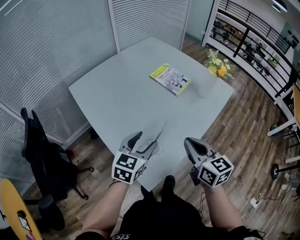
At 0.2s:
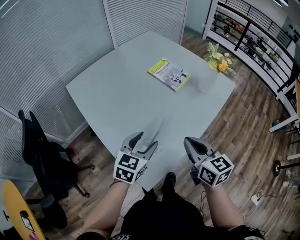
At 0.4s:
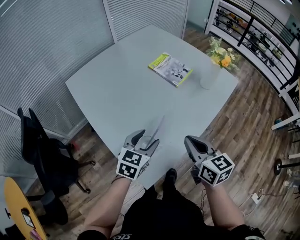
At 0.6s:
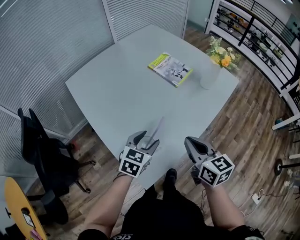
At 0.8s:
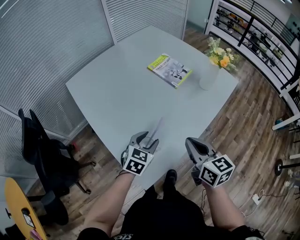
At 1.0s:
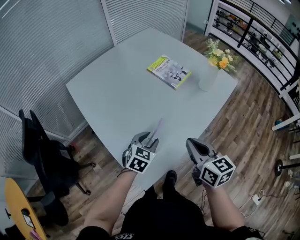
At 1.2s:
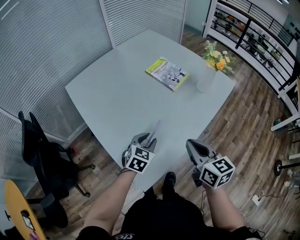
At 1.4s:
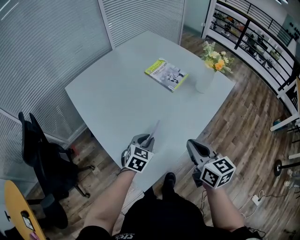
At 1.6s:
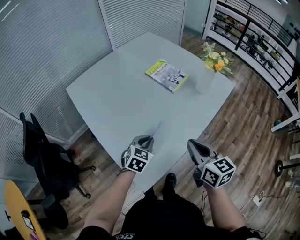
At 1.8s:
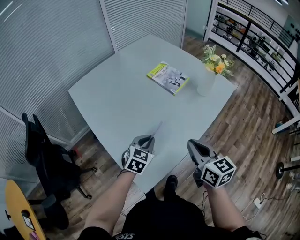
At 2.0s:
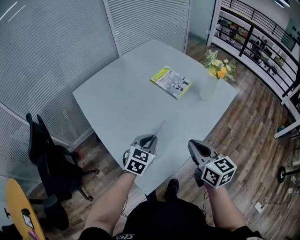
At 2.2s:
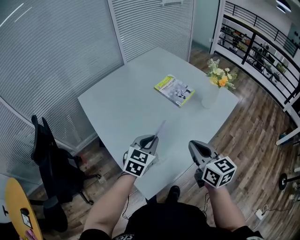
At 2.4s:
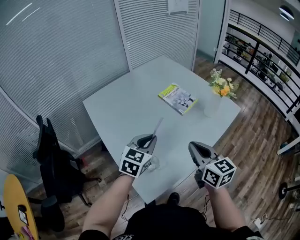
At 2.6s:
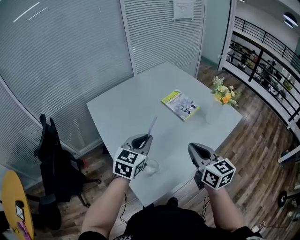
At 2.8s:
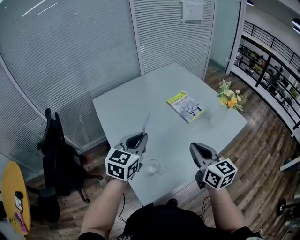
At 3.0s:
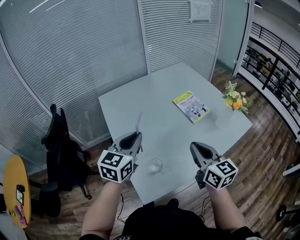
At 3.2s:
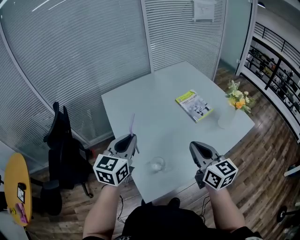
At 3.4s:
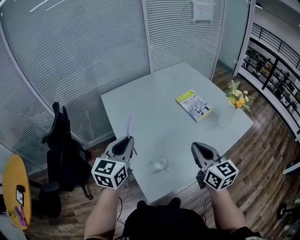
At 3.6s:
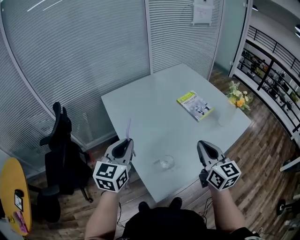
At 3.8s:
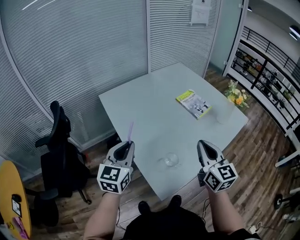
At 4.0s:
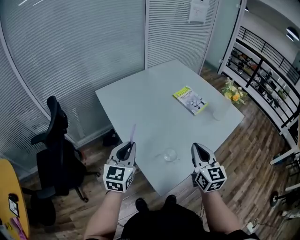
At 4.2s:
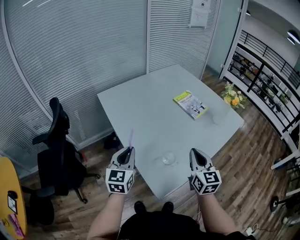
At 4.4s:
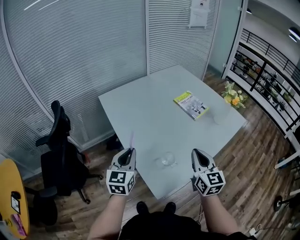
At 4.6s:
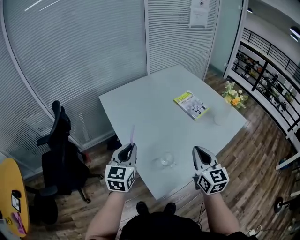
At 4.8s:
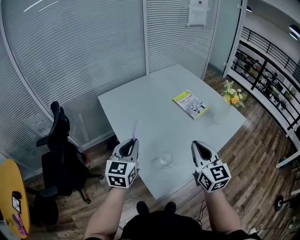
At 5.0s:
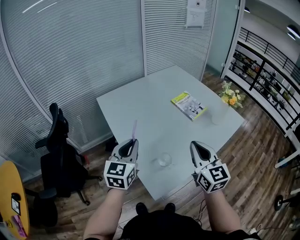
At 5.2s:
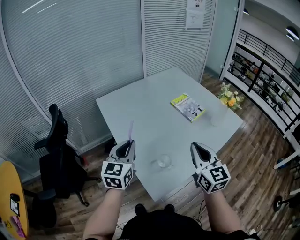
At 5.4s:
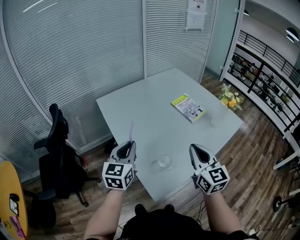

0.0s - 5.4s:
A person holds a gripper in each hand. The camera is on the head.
0.0s - 1.4s: The right gripper moves to the right, about 5 cm. The left gripper travels downward by roughly 15 cm, and closes.
1.4s - 2.8s: The left gripper shifts roughly 25 cm upward, and changes its angle by roughly 30 degrees. The right gripper is displaced upward and forward by approximately 10 cm.
2.8s - 4.0s: The left gripper travels to the left by roughly 20 cm, while the right gripper moves to the left and backward, roughly 10 cm.

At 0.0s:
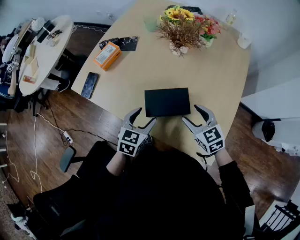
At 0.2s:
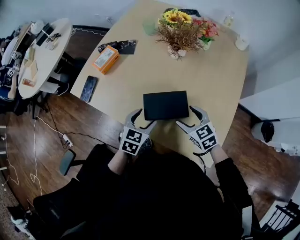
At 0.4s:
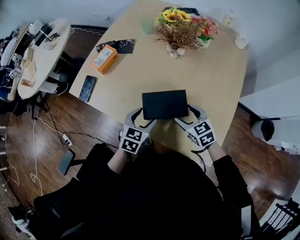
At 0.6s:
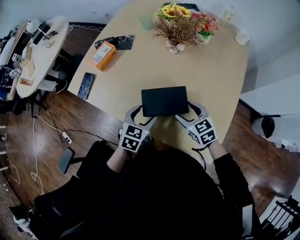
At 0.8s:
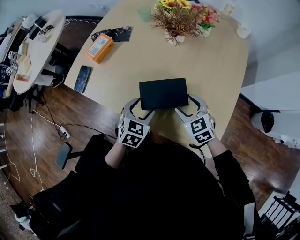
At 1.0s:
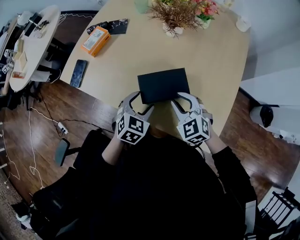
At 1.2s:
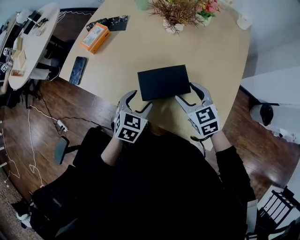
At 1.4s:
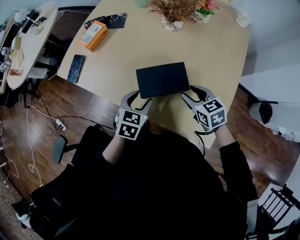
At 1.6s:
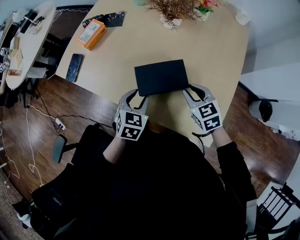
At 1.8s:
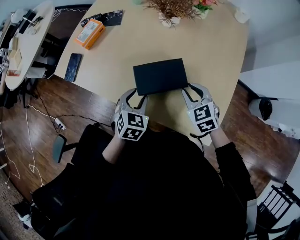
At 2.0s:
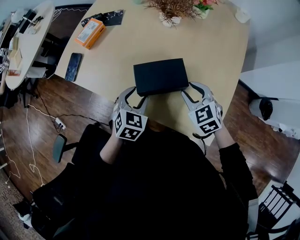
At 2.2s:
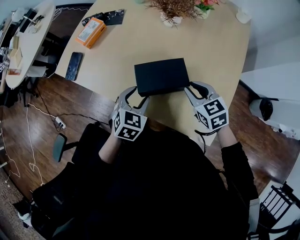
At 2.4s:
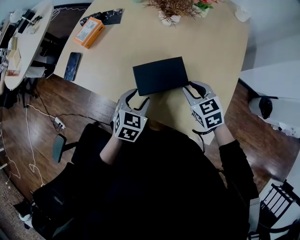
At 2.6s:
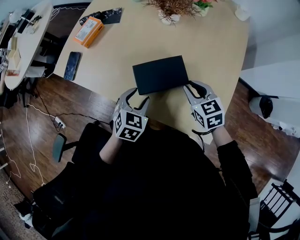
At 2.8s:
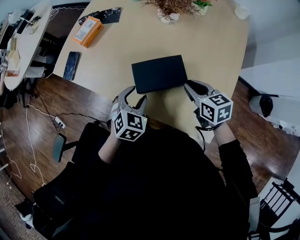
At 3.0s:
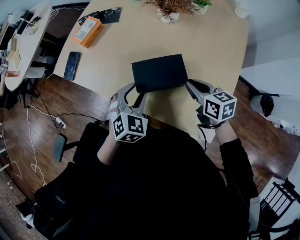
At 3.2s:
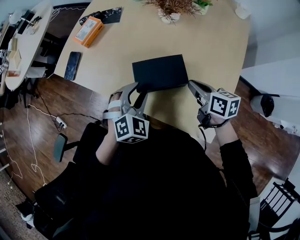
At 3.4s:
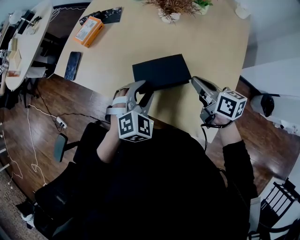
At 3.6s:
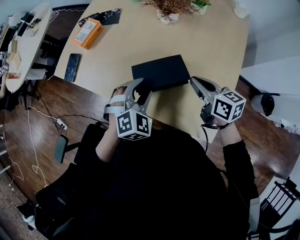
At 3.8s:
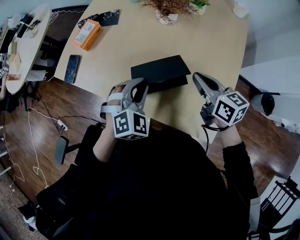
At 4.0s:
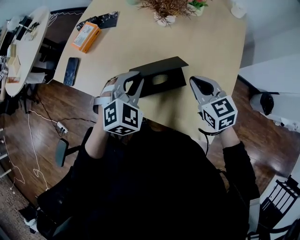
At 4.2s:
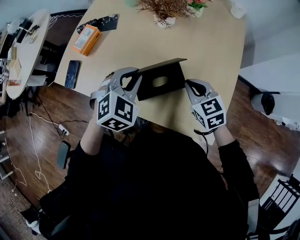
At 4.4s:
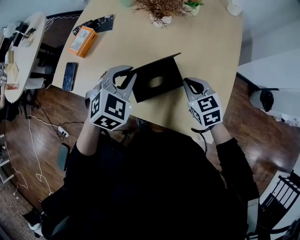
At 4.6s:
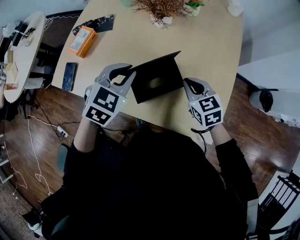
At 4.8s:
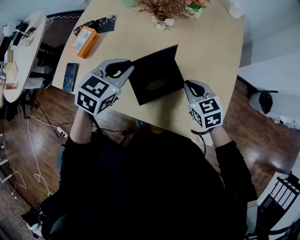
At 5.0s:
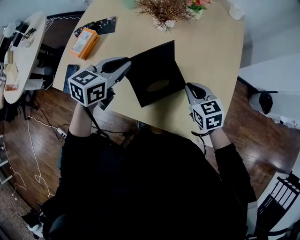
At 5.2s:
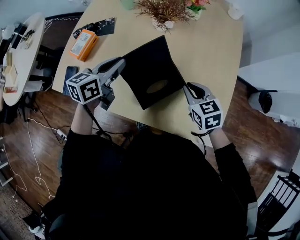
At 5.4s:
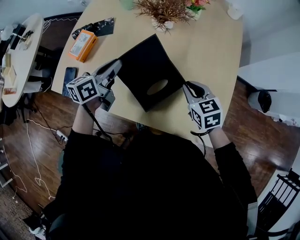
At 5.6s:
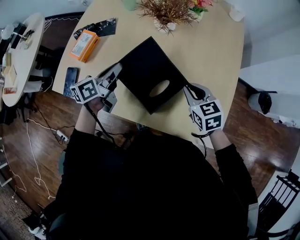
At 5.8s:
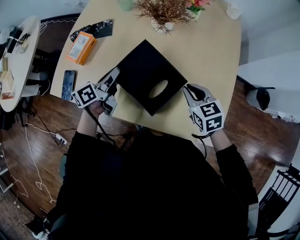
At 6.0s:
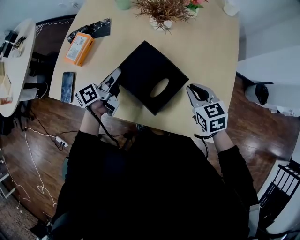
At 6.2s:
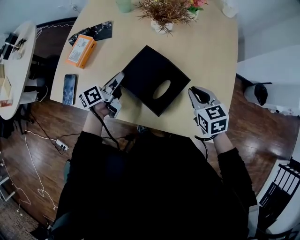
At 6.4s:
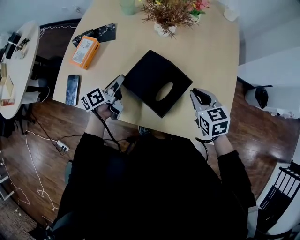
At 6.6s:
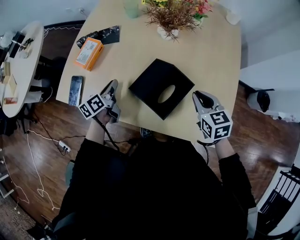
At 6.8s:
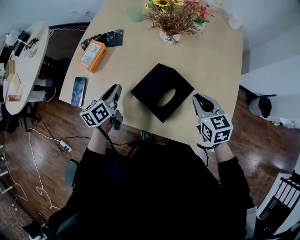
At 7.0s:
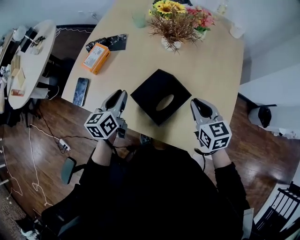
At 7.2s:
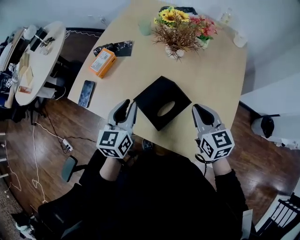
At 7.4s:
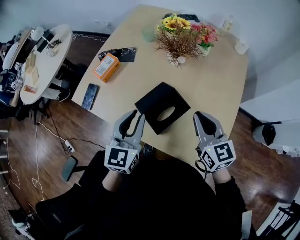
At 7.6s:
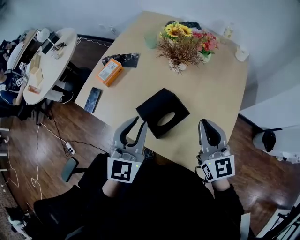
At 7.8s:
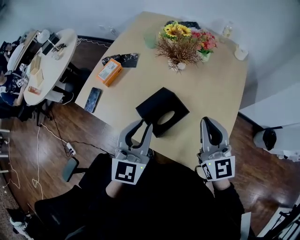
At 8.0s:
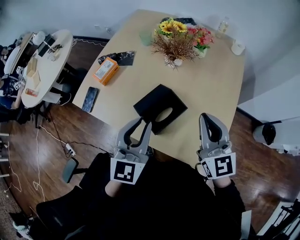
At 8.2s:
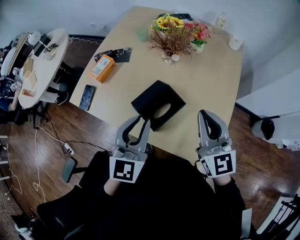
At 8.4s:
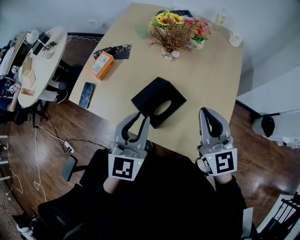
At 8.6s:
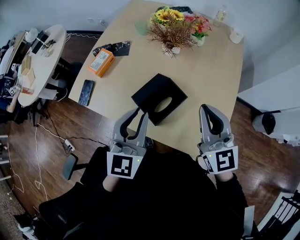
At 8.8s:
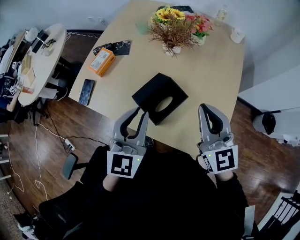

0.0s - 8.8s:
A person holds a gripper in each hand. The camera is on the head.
1.4s - 3.0s: The left gripper swivels approximately 30 degrees. The right gripper closes up.
3.0s - 4.4s: The right gripper swivels some 30 degrees; the left gripper travels upward and forward by about 10 cm, and closes its fingers.
4.4s - 5.8s: The left gripper moves to the left, downward and forward, about 15 cm, and twists about 80 degrees counterclockwise, seen from behind.
5.8s - 7.4s: The right gripper is displaced upward by roughly 15 cm, and turns by about 30 degrees. Meanwhile the left gripper travels upward, backward and to the right by about 20 cm, and rotates around the line of its fingers by approximately 50 degrees, clockwise from behind.
7.4s - 8.8s: The left gripper shifts by some 5 cm, while the right gripper travels upward by approximately 5 cm.

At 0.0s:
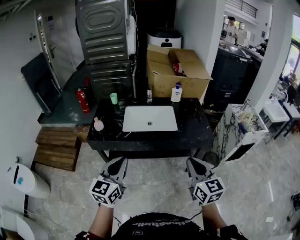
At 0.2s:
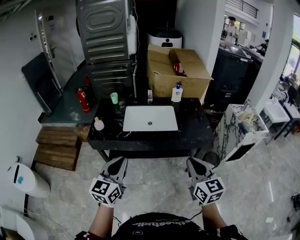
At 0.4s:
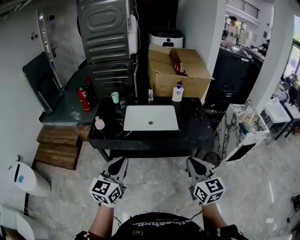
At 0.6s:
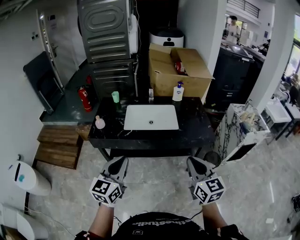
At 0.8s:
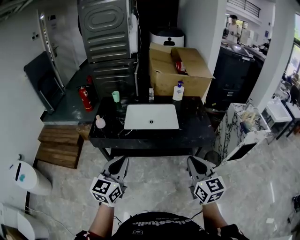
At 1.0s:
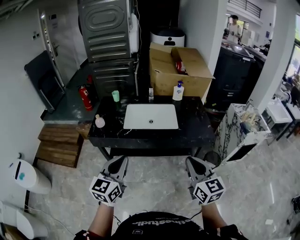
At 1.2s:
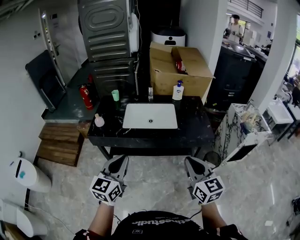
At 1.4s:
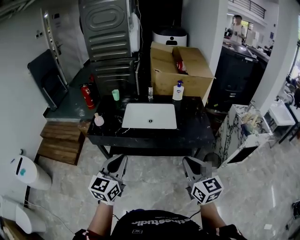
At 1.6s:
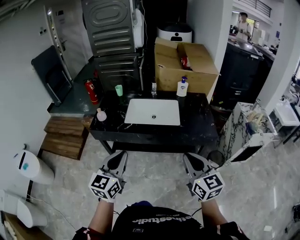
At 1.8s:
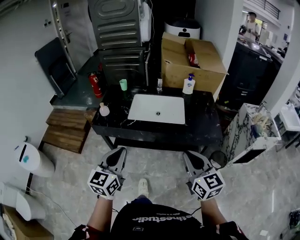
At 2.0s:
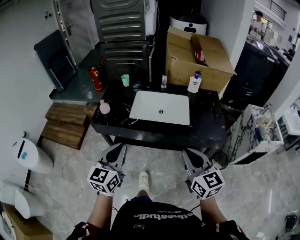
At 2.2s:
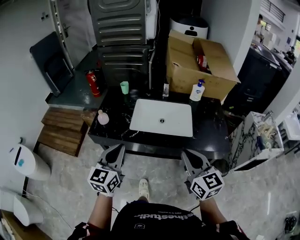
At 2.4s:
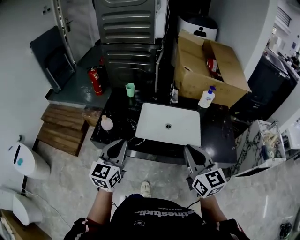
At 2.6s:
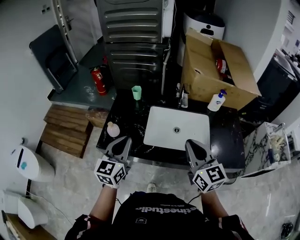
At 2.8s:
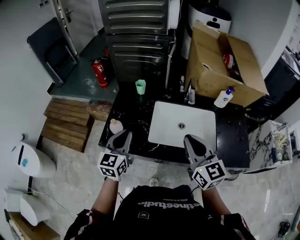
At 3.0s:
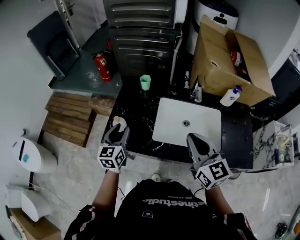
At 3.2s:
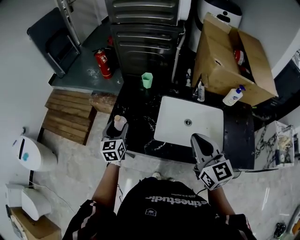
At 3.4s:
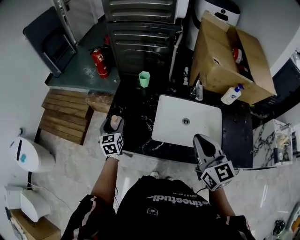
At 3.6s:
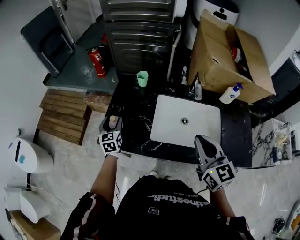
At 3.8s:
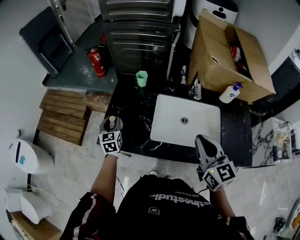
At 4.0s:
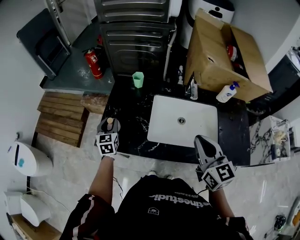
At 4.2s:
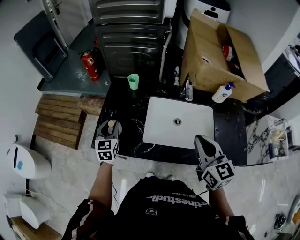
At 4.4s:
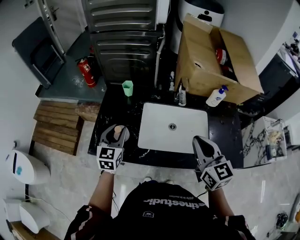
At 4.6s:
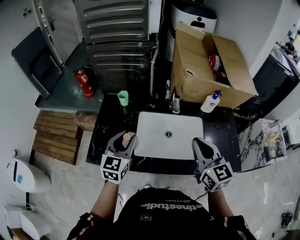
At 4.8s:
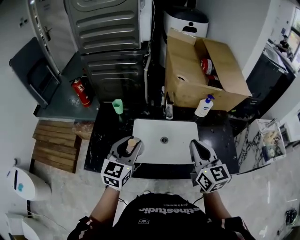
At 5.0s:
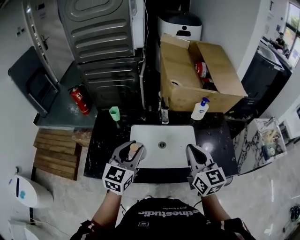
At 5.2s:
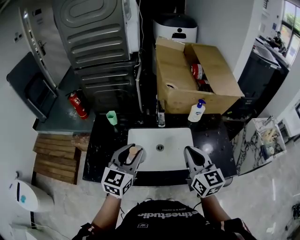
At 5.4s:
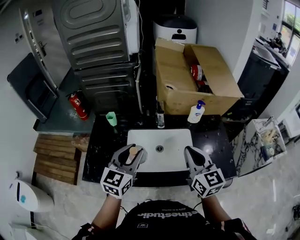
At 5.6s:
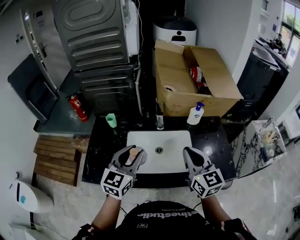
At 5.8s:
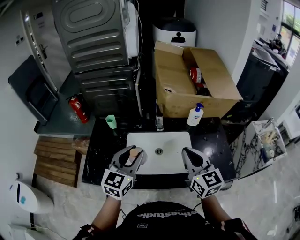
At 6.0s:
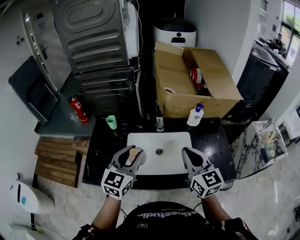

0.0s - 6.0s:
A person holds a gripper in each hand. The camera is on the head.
0.0s - 1.6s: The left gripper shifts by some 5 cm.
1.6s - 3.0s: Both grippers are carried forward and to the left, about 50 cm. The left gripper opens up.
3.0s - 4.4s: Both grippers move to the right, approximately 10 cm. The left gripper opens, then closes again.
4.4s - 6.0s: The left gripper travels to the right and upward by roughly 25 cm, and rotates some 20 degrees. Meanwhile the right gripper goes approximately 10 cm to the right.

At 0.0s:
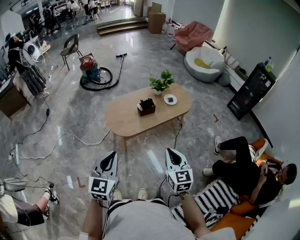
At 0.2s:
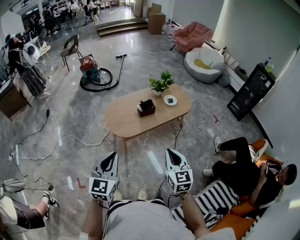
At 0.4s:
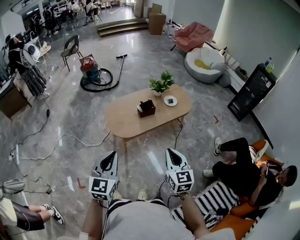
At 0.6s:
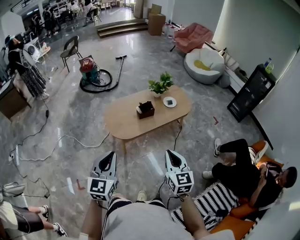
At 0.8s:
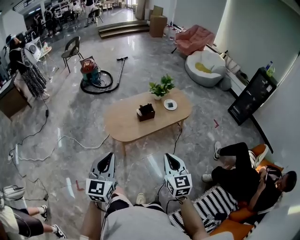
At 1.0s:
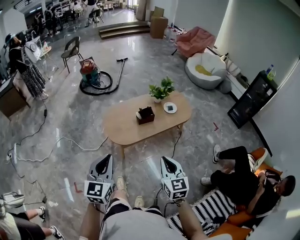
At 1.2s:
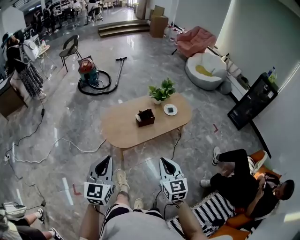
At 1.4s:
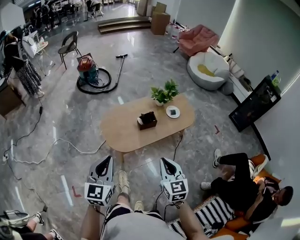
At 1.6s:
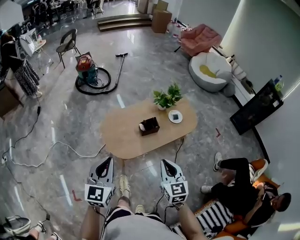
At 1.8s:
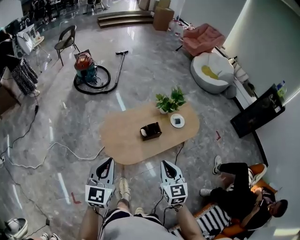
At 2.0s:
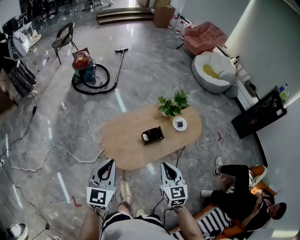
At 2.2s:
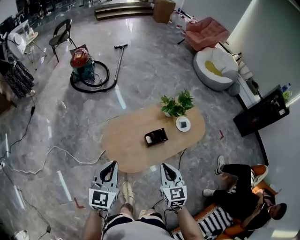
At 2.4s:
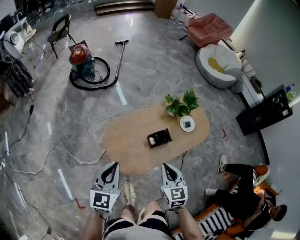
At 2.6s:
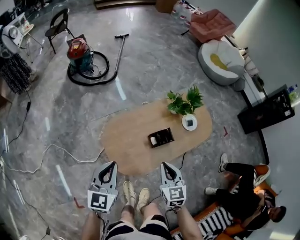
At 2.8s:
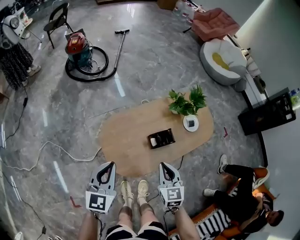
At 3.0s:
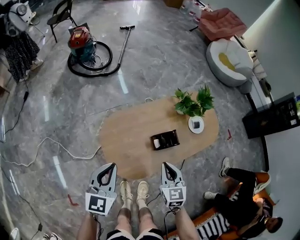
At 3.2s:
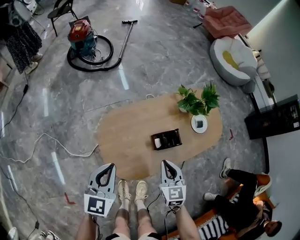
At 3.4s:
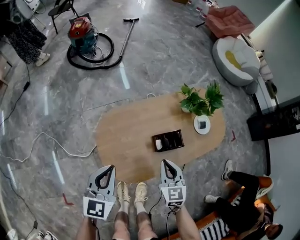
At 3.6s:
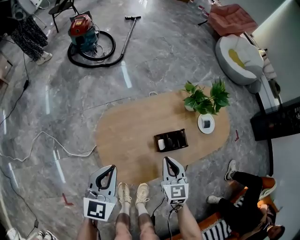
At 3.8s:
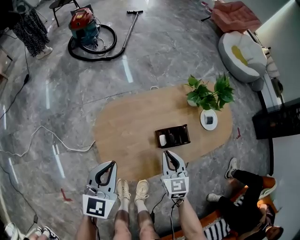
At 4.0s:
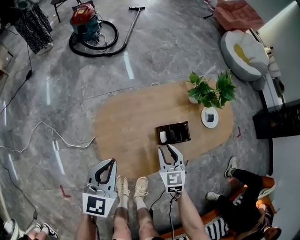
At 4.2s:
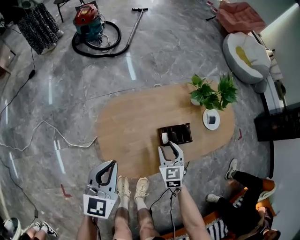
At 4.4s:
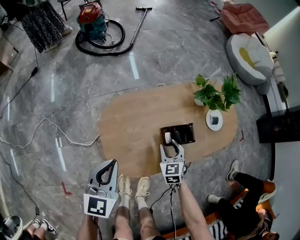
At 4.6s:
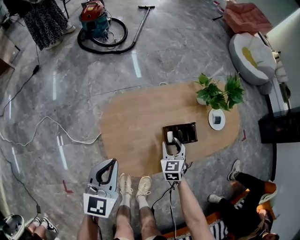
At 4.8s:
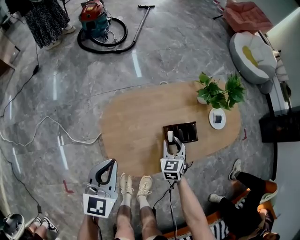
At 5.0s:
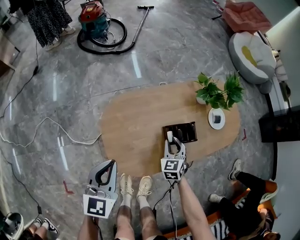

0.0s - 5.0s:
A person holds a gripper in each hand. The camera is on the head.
0.0s - 1.6s: The grippers both shift forward by some 20 cm.
1.6s - 3.4s: The left gripper moves downward and forward, about 35 cm. The right gripper goes about 40 cm forward and downward.
3.4s - 5.0s: The right gripper goes approximately 15 cm downward and forward, and opens its fingers.
